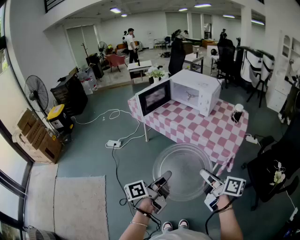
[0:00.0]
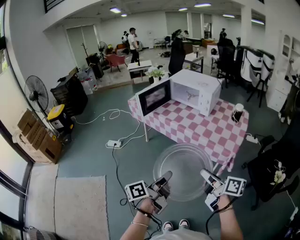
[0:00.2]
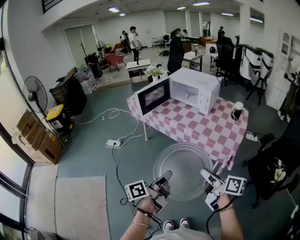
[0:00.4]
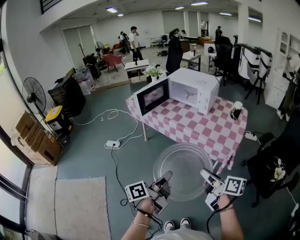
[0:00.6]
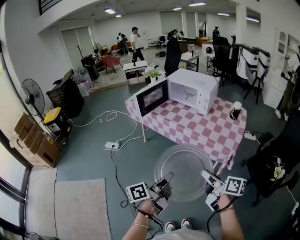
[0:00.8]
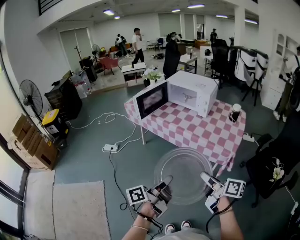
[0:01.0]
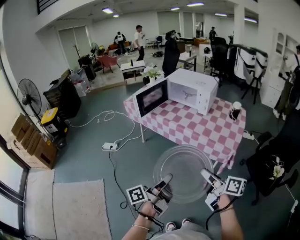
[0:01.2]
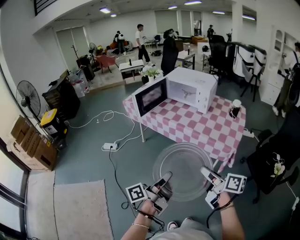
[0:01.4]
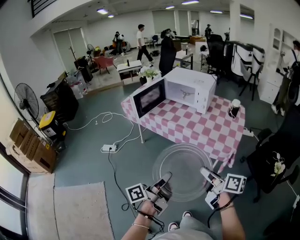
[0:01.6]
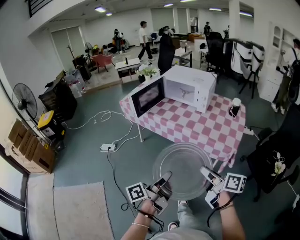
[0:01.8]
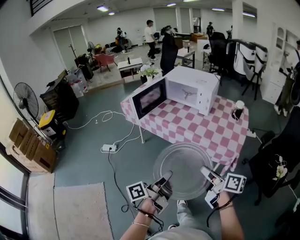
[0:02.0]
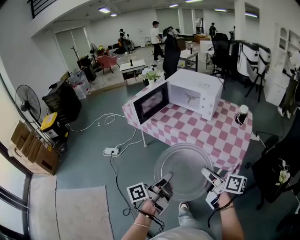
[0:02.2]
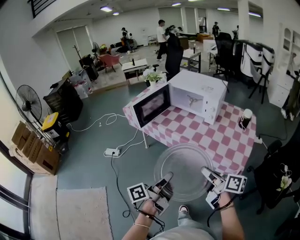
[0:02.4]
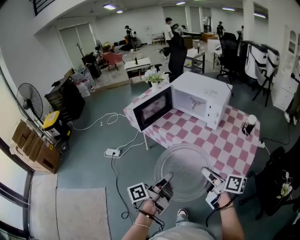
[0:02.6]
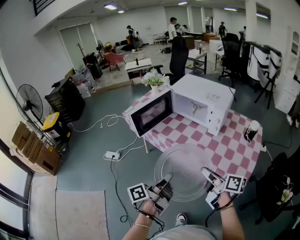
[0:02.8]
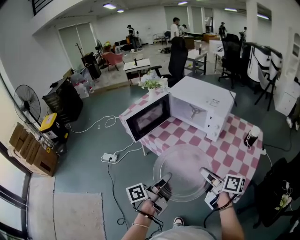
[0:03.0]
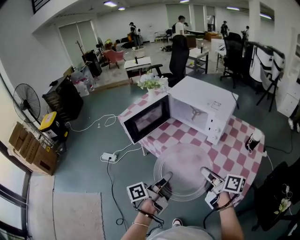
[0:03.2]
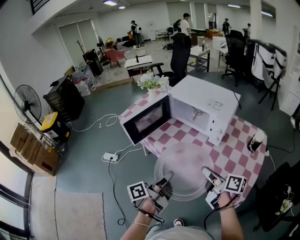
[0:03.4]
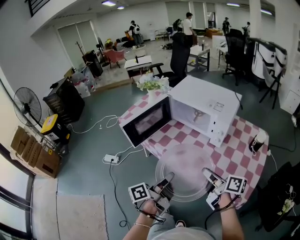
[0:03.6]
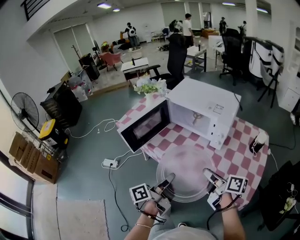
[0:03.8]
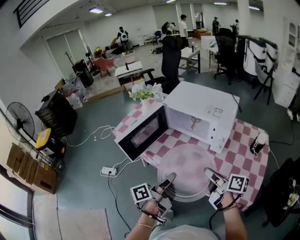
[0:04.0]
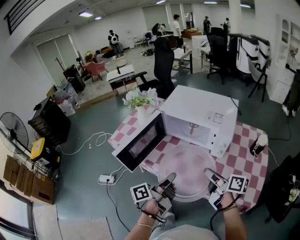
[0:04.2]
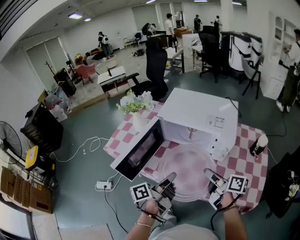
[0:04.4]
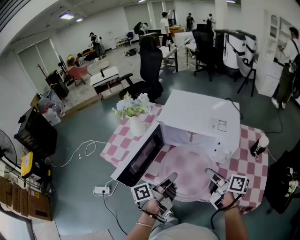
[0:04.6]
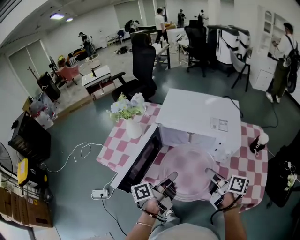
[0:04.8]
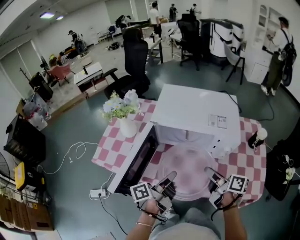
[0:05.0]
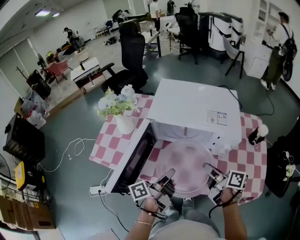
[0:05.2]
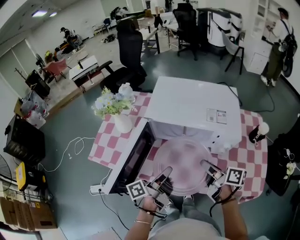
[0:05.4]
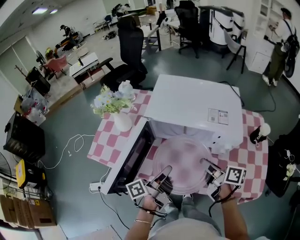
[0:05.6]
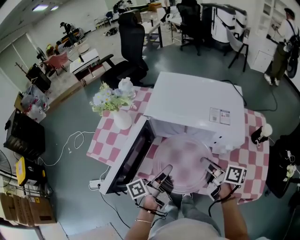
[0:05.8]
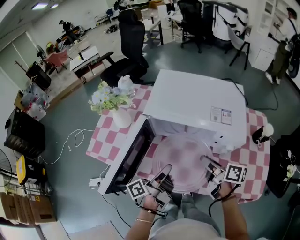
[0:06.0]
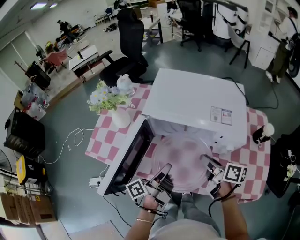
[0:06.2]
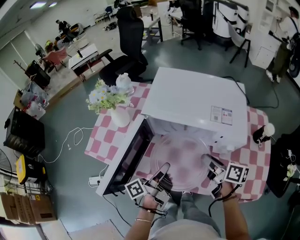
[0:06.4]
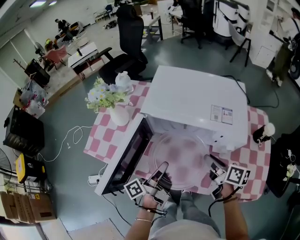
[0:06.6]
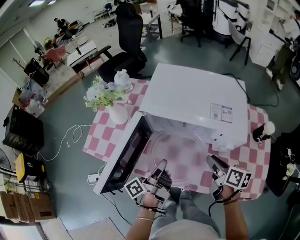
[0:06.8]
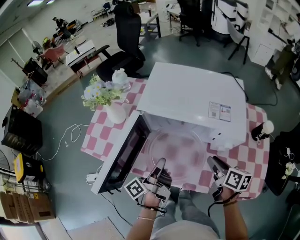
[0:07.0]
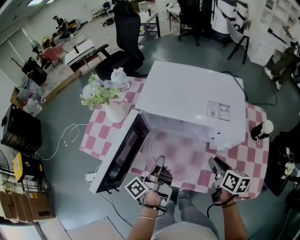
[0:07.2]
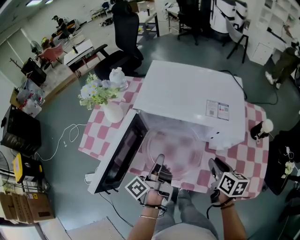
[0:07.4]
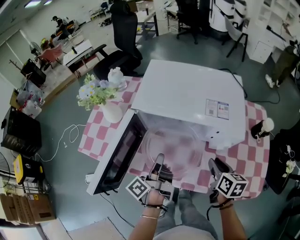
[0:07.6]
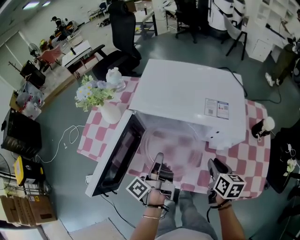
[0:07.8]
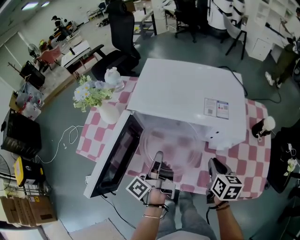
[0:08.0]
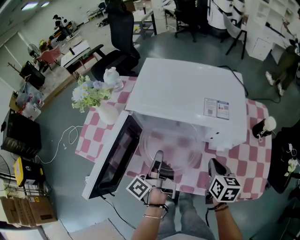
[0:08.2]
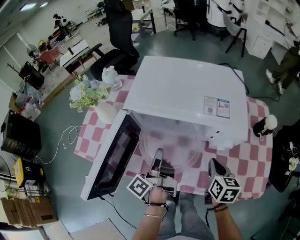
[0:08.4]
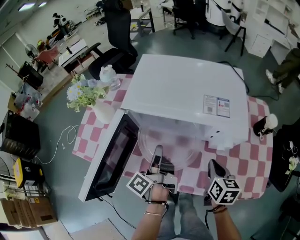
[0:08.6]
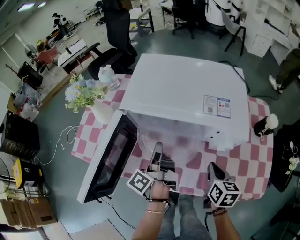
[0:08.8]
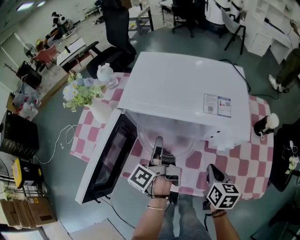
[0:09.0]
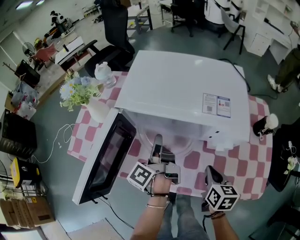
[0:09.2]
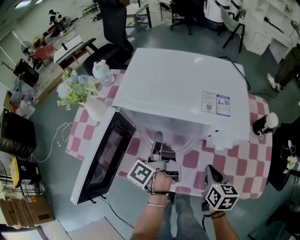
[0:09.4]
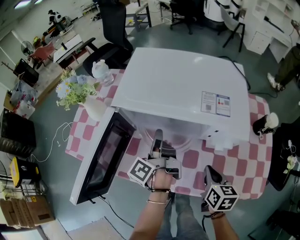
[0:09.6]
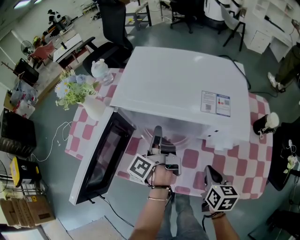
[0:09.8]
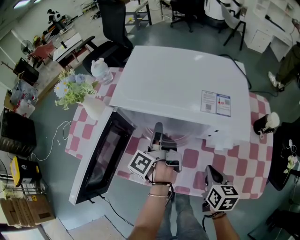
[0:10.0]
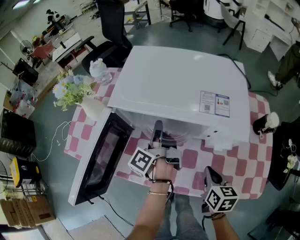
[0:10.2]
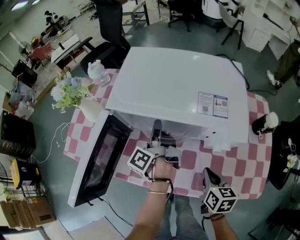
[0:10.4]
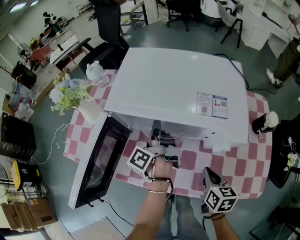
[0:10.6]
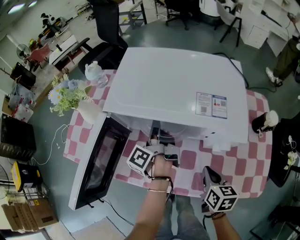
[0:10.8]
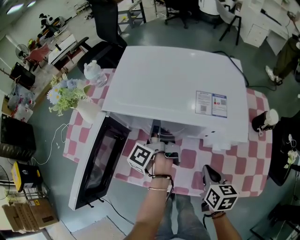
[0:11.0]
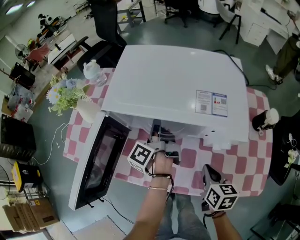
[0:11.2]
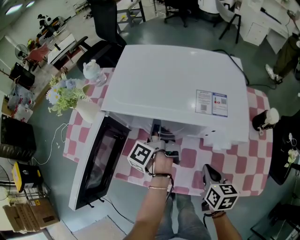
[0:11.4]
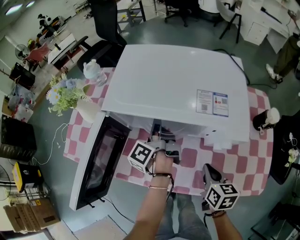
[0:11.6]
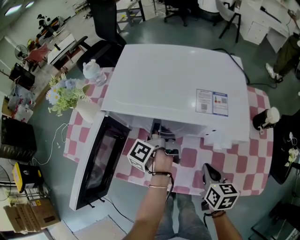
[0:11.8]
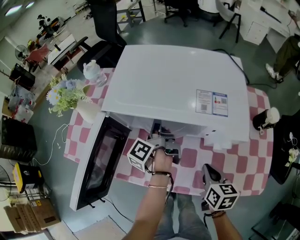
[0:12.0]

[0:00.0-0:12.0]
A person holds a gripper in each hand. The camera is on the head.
0:01.6 to 0:03.0: The right gripper ends up some 30 cm from where it was.
0:03.0 to 0:04.4: The right gripper shifts by some 20 cm.
0:04.4 to 0:06.0: The right gripper changes place by approximately 10 cm.
0:06.0 to 0:07.6: The right gripper moves some 10 cm, and rotates roughly 40 degrees.
0:07.6 to 0:09.0: The right gripper closes its fingers.

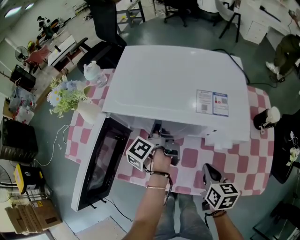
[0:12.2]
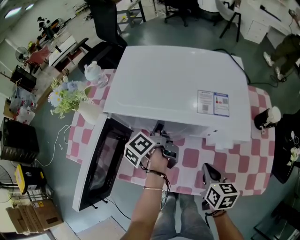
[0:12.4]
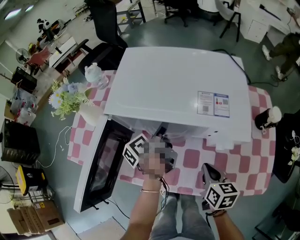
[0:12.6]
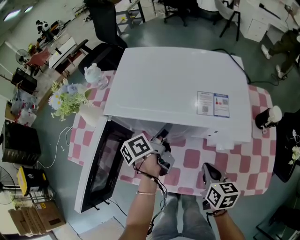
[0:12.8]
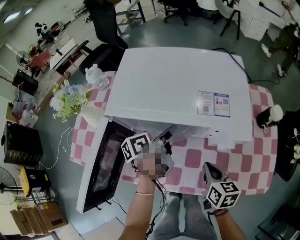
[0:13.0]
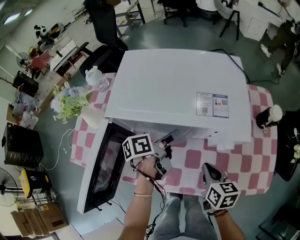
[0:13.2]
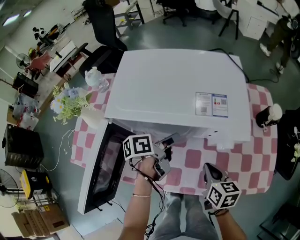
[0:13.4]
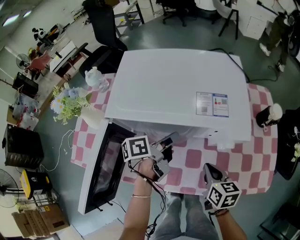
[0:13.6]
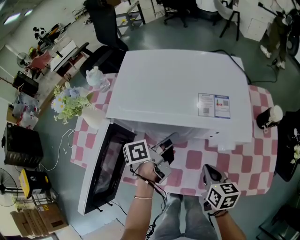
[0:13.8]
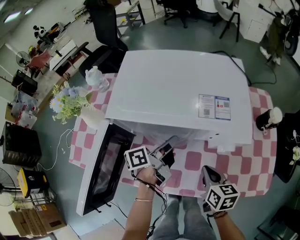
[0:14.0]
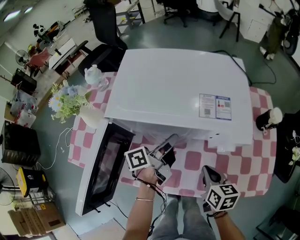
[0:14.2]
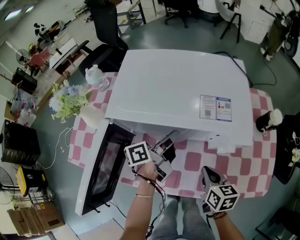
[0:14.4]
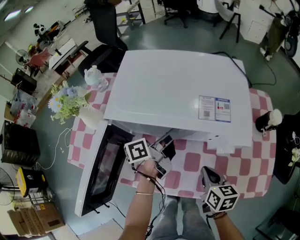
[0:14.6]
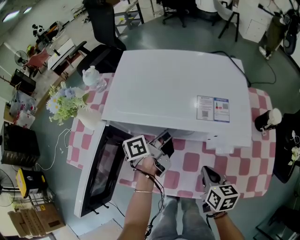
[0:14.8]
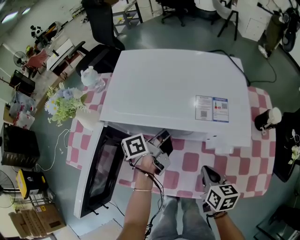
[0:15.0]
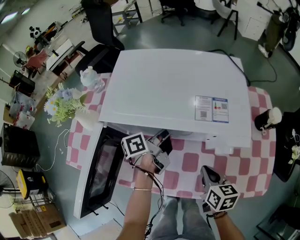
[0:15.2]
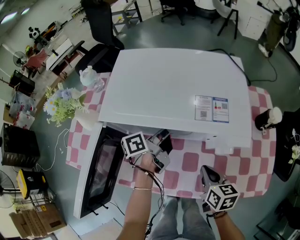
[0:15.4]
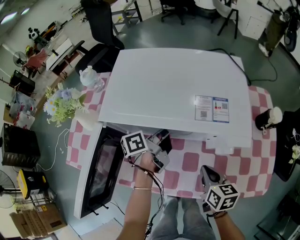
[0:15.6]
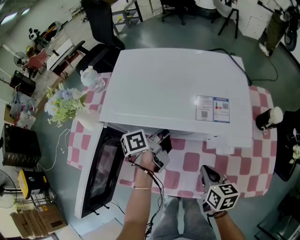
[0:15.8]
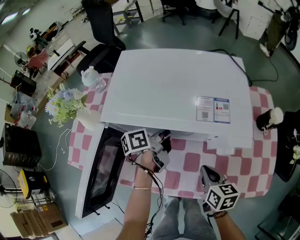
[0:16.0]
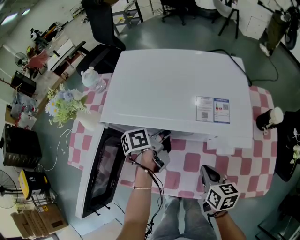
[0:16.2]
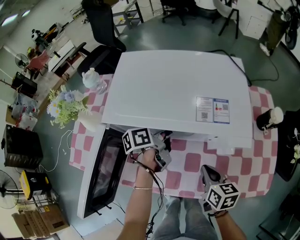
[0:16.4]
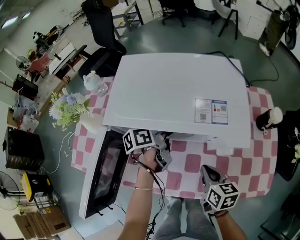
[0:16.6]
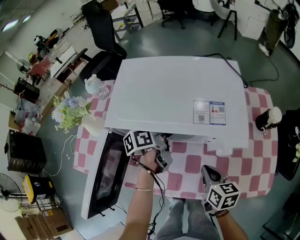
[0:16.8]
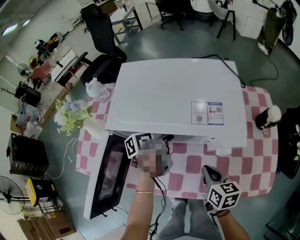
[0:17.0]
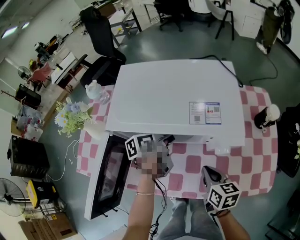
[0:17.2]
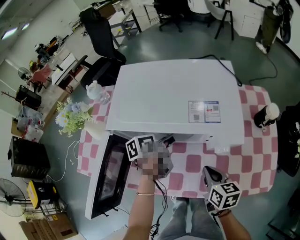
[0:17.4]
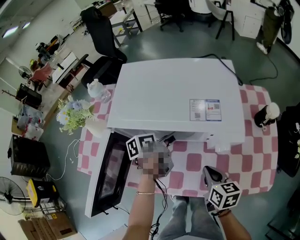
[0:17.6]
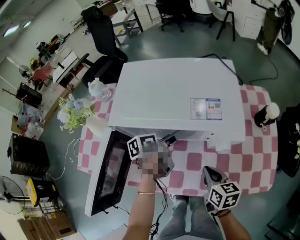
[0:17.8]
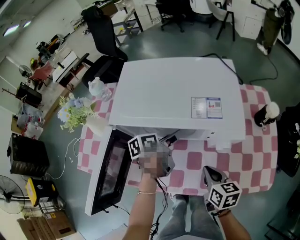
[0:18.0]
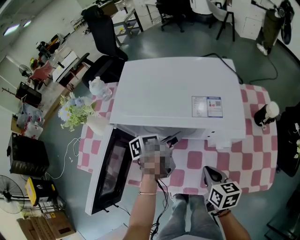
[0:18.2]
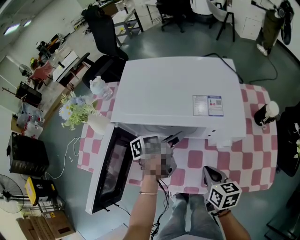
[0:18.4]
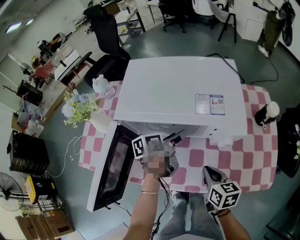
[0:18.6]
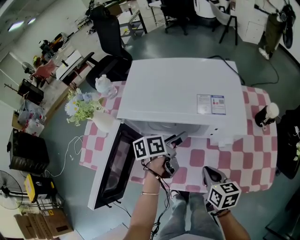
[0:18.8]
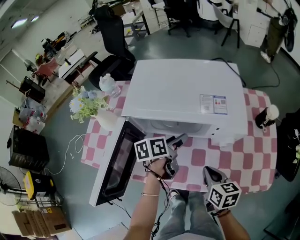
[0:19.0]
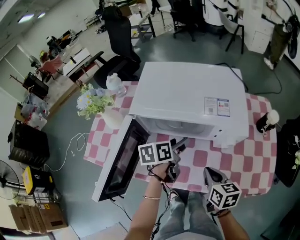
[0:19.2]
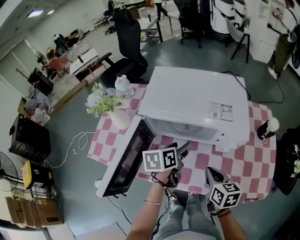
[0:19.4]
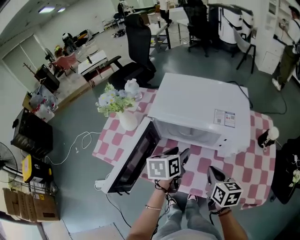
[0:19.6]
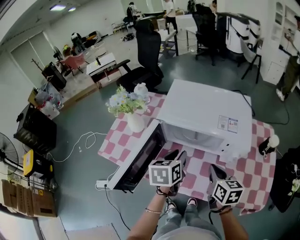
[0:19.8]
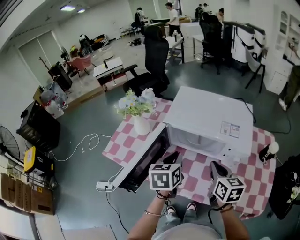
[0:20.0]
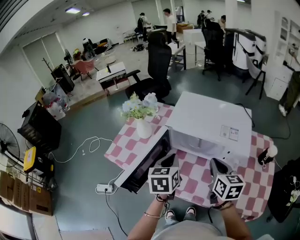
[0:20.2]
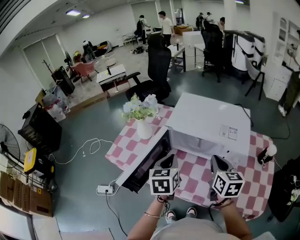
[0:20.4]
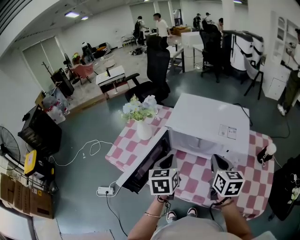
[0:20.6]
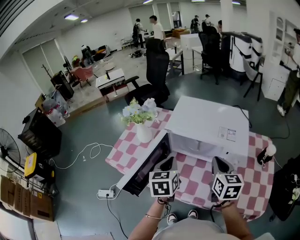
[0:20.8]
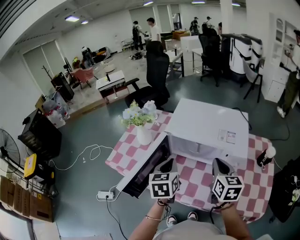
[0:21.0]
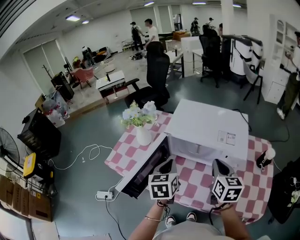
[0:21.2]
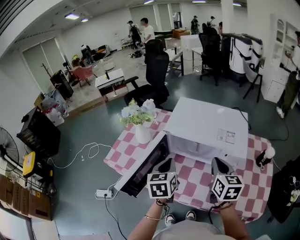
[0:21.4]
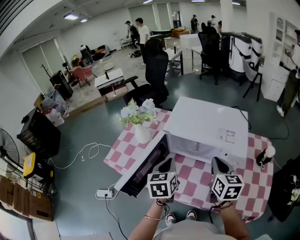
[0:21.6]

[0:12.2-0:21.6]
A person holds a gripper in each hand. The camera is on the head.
0:18.4 to 0:20.0: The right gripper moves upward, roughly 15 cm.
0:20.0 to 0:21.6: The right gripper changes place by roughly 5 cm.

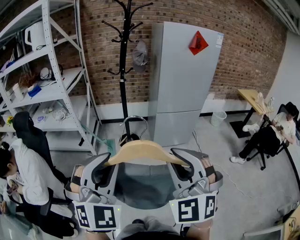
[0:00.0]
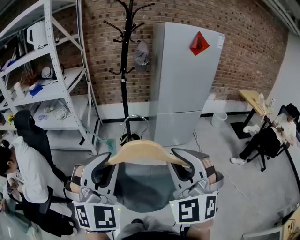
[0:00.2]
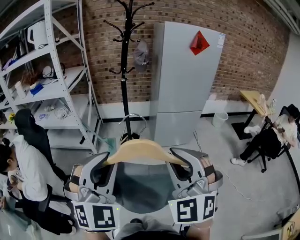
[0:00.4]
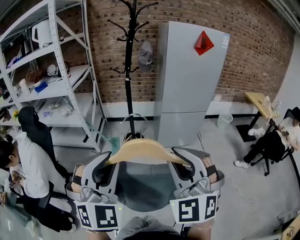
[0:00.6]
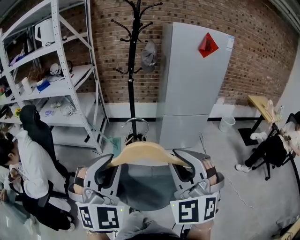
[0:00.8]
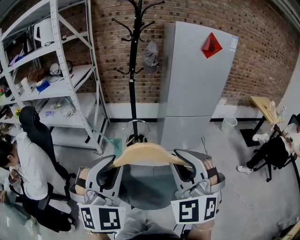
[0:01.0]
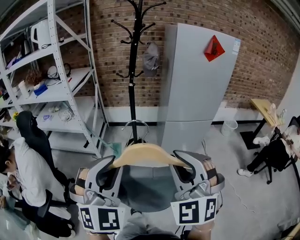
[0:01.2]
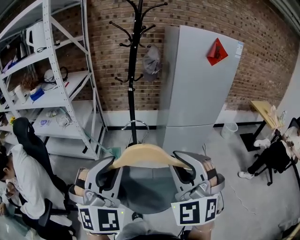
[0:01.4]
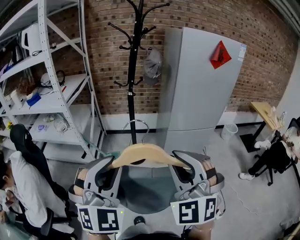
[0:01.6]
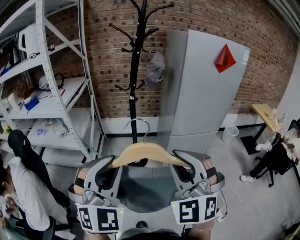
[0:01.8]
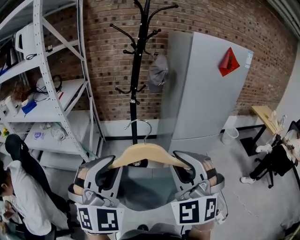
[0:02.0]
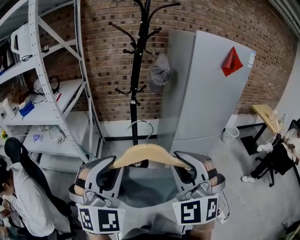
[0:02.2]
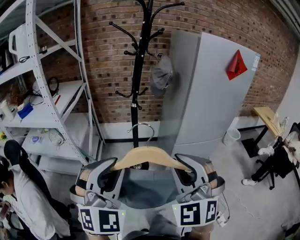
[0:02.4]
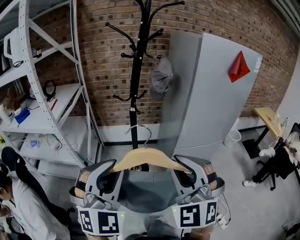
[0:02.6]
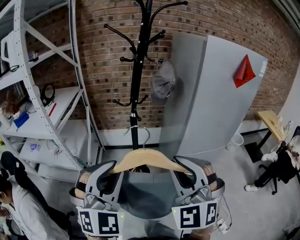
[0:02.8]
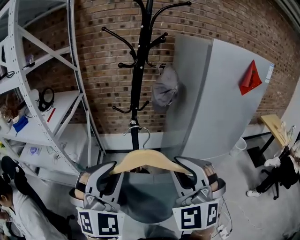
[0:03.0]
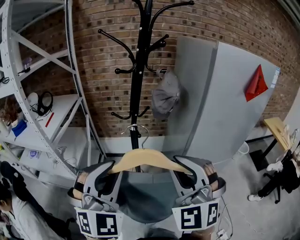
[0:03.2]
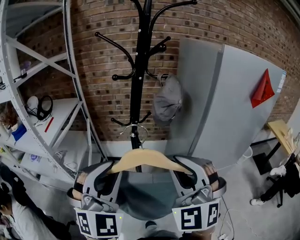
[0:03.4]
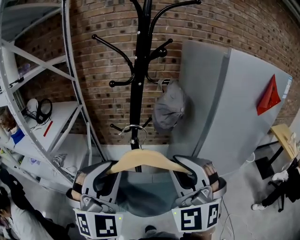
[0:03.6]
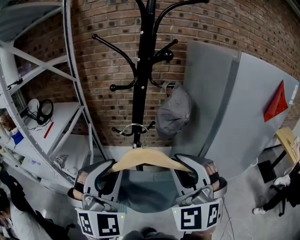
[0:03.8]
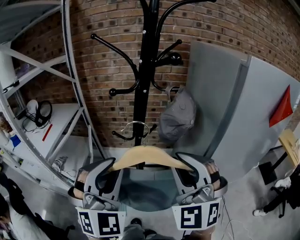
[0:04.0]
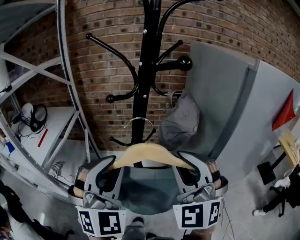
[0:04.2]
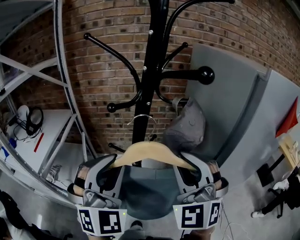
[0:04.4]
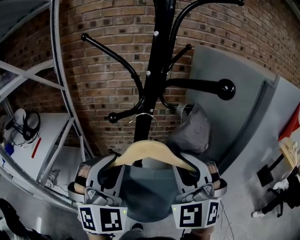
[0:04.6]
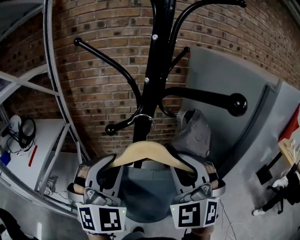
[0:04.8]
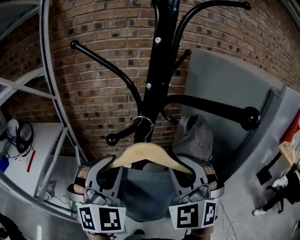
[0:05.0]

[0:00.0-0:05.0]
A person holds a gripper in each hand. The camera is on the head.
0:00.0 to 0:01.6: The grippers both shift forward by about 15 cm.
0:01.6 to 0:03.4: The grippers both shift forward by about 35 cm.
0:03.4 to 0:05.0: The grippers both shift forward by roughly 25 cm.
